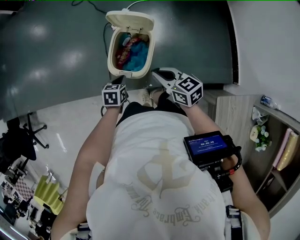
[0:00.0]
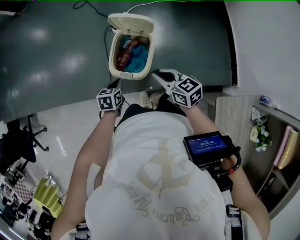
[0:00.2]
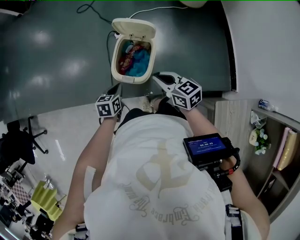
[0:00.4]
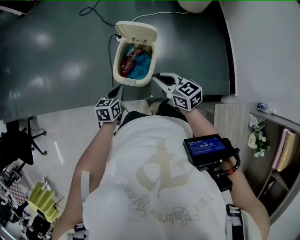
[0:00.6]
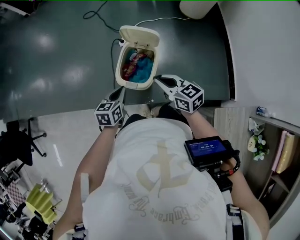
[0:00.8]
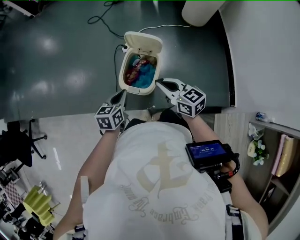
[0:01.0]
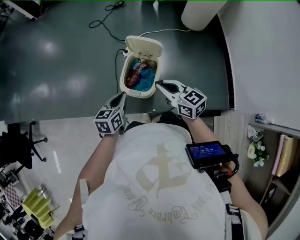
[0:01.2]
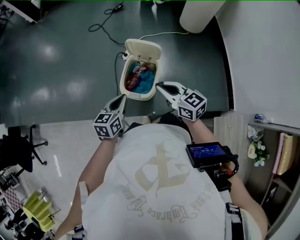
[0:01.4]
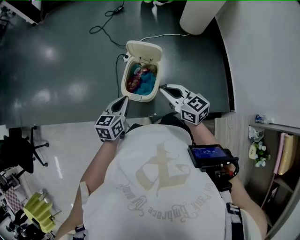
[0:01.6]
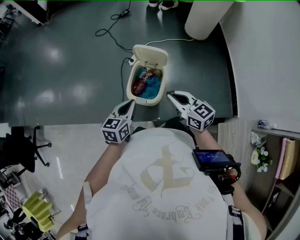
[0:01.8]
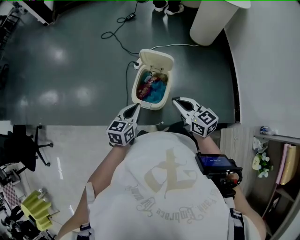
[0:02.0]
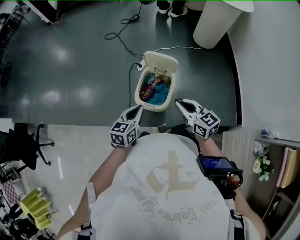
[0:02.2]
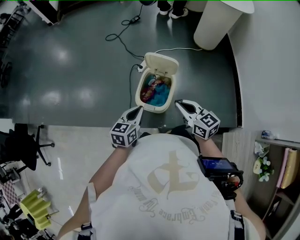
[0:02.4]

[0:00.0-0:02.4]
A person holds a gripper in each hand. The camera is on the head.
0:00.0 to 0:01.2: The right gripper goes some 10 cm upward. The left gripper heads upward, covering roughly 15 cm, and swivels about 30 degrees.
0:01.2 to 0:02.4: The grippers make only small movements.

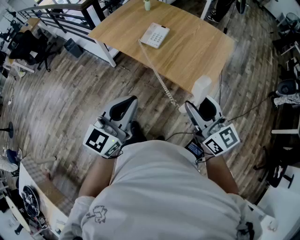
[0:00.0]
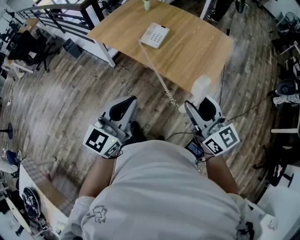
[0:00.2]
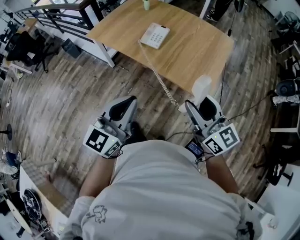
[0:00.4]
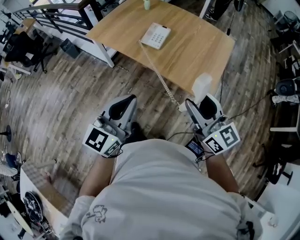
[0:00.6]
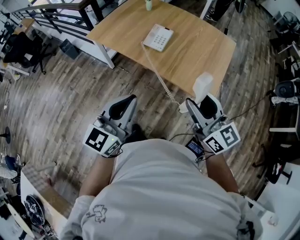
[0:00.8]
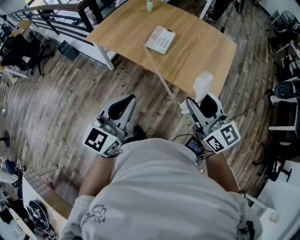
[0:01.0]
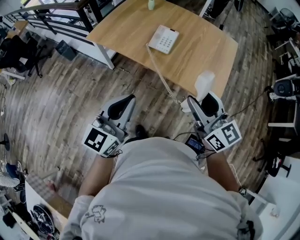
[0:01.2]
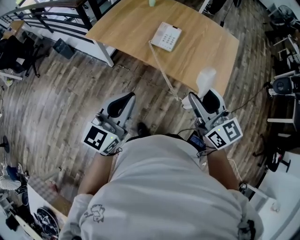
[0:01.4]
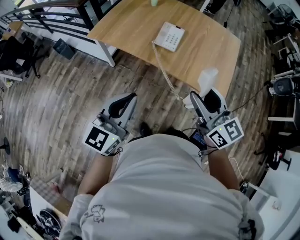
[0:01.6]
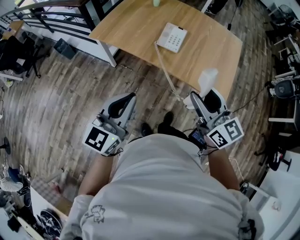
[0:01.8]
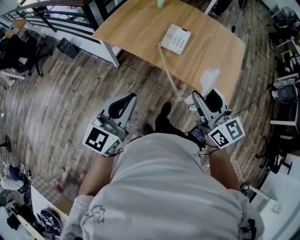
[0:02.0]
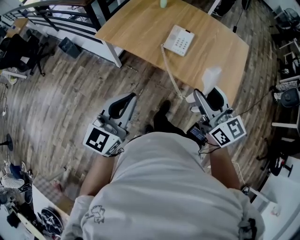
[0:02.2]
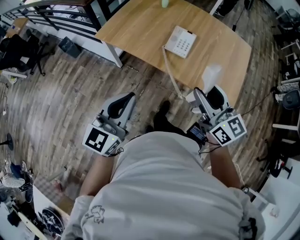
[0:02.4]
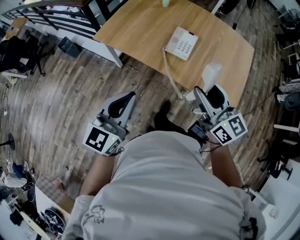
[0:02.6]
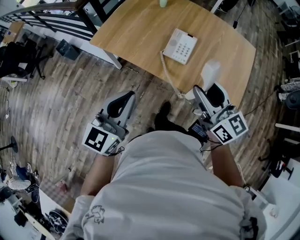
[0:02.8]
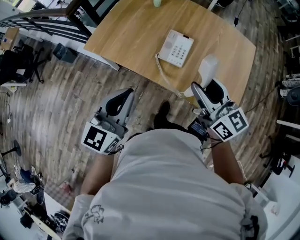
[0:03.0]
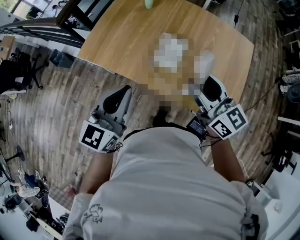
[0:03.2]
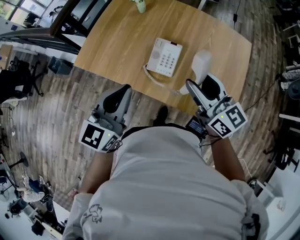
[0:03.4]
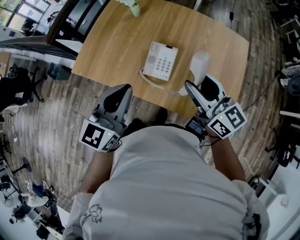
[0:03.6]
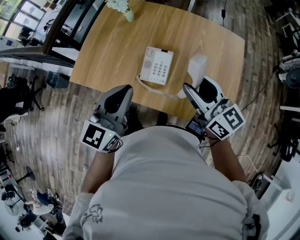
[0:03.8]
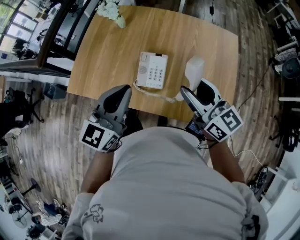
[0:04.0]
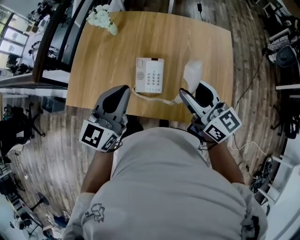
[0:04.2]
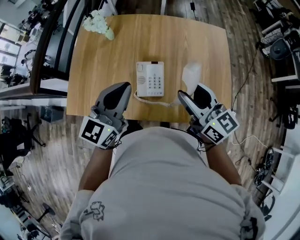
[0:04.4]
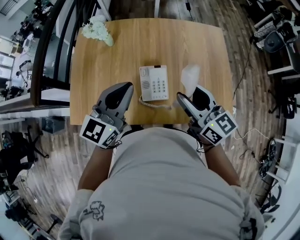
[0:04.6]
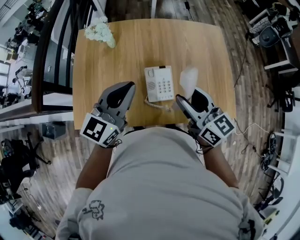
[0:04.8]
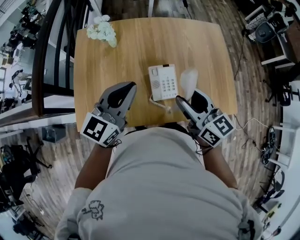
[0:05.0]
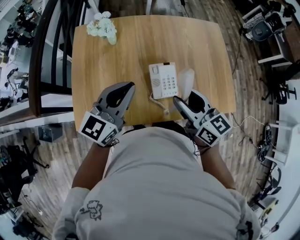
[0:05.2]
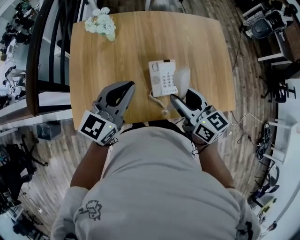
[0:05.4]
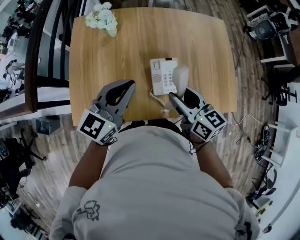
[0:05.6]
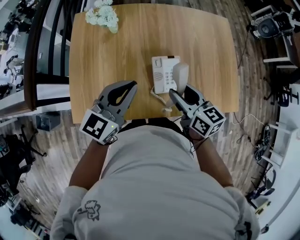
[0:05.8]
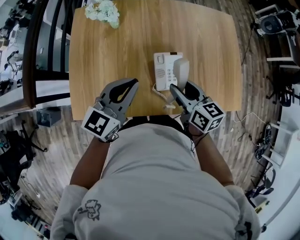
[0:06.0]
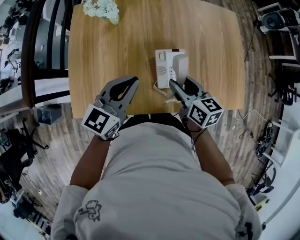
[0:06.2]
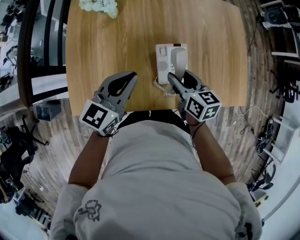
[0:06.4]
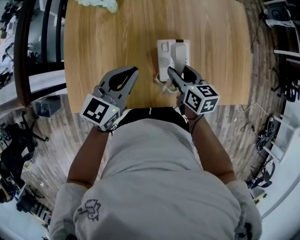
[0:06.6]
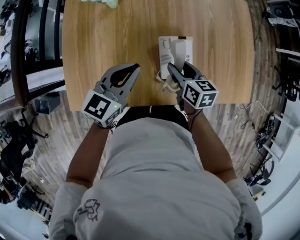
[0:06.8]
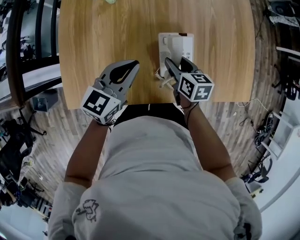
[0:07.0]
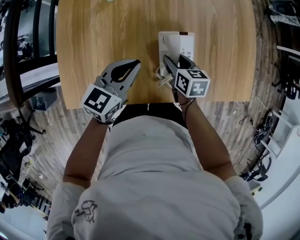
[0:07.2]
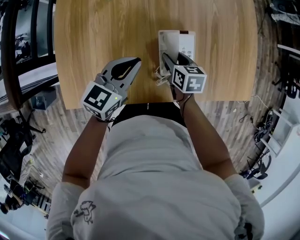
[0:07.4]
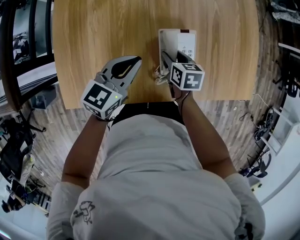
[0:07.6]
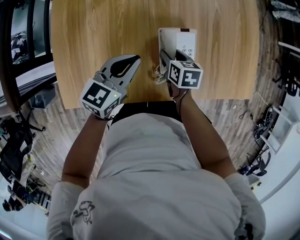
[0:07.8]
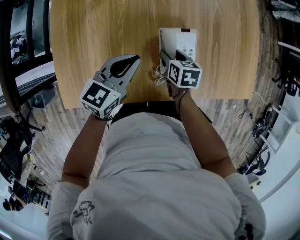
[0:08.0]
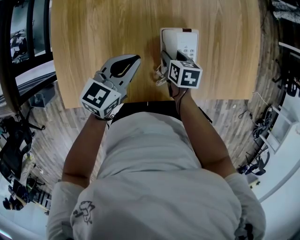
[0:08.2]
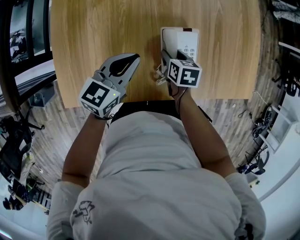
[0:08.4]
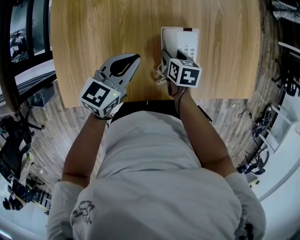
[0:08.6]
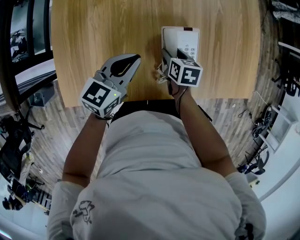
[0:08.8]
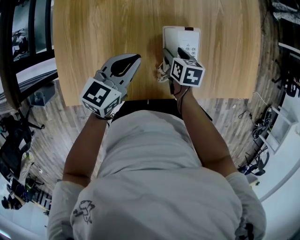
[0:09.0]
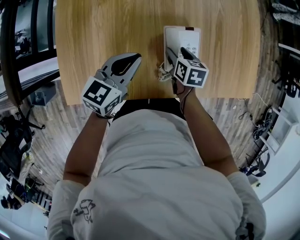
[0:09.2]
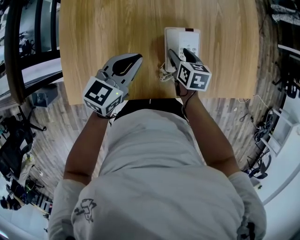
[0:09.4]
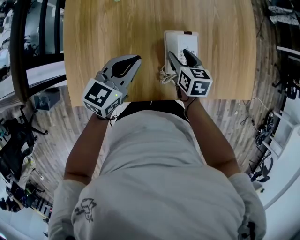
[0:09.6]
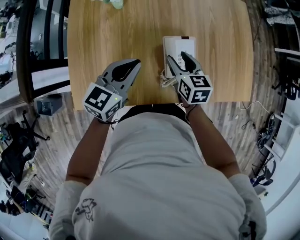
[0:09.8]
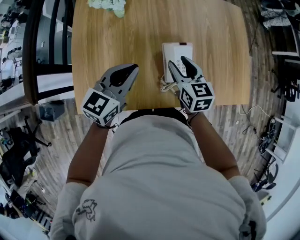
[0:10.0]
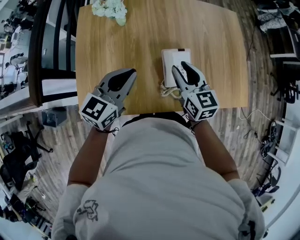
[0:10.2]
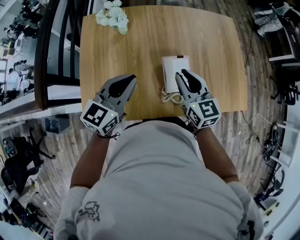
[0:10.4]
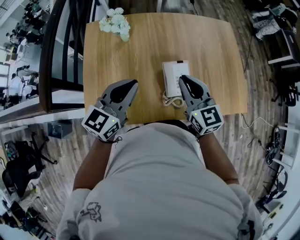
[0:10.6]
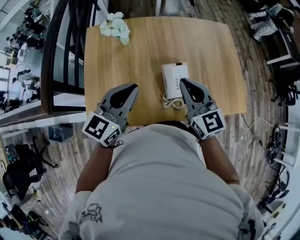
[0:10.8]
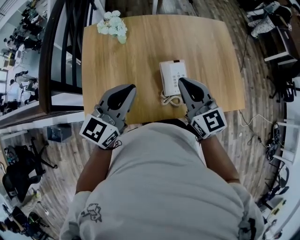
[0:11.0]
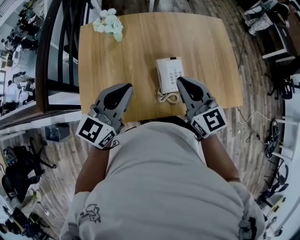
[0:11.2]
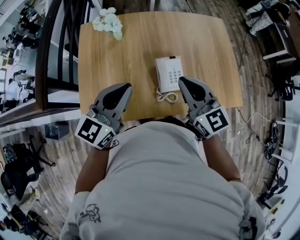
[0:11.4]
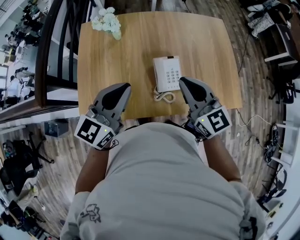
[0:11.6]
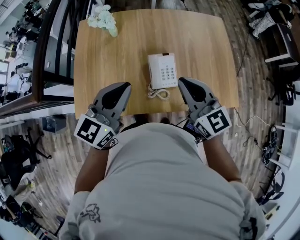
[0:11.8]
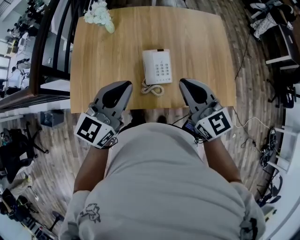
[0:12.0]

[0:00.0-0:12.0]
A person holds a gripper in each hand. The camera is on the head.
0:00.0 to 0:01.6: Both grippers move to the left and forward, approximately 20 cm.
0:01.6 to 0:03.0: The grippers both shift forward by approximately 20 cm.
0:03.0 to 0:04.4: The right gripper is displaced forward by roughly 15 cm. The left gripper travels forward by about 25 cm, and swivels about 20 degrees.
0:04.4 to 0:06.0: The grippers both shift to the left and downward by about 15 cm. The right gripper changes its angle by roughly 30 degrees.
0:06.0 to 0:07.6: The right gripper is displaced downward by approximately 20 cm, and swivels roughly 30 degrees. Meanwhile the left gripper heads downward, covering approximately 15 cm.
0:07.6 to 0:09.0: The grippers stay close to where they were, moving slightly.
0:09.0 to 0:10.4: The left gripper goes about 15 cm upward. Meanwhile the right gripper travels upward by some 25 cm, points its fingers approximately 40 degrees further upward, and closes its fingers.
0:10.4 to 0:12.0: The left gripper shifts roughly 15 cm to the right, backward and upward. Meanwhile the right gripper goes about 20 cm to the right, upward and backward.

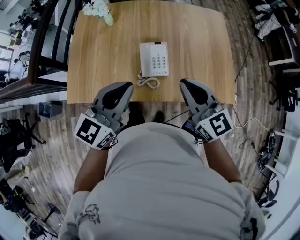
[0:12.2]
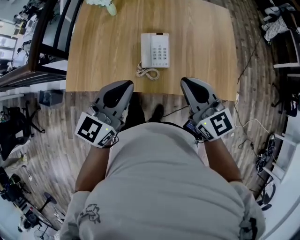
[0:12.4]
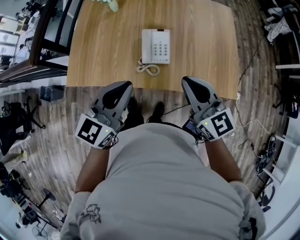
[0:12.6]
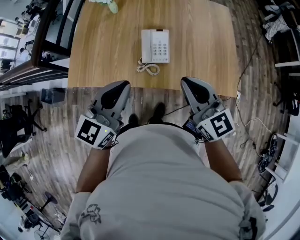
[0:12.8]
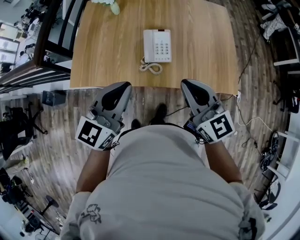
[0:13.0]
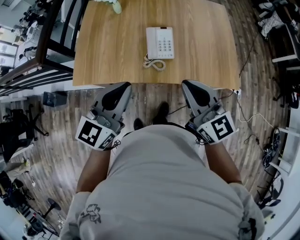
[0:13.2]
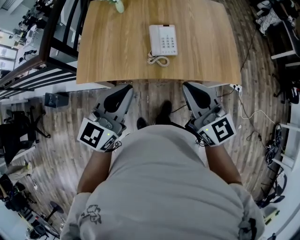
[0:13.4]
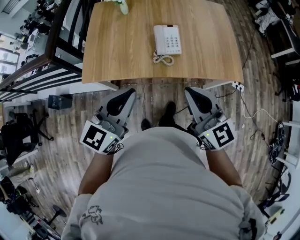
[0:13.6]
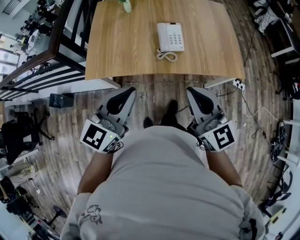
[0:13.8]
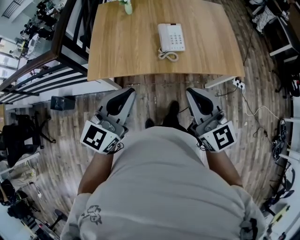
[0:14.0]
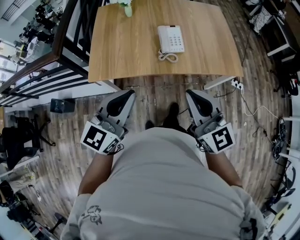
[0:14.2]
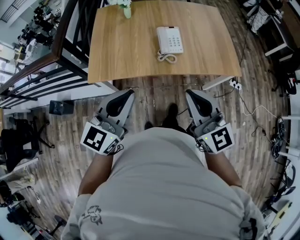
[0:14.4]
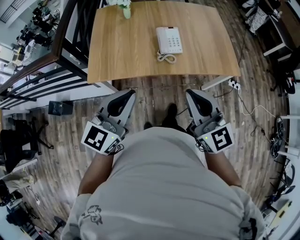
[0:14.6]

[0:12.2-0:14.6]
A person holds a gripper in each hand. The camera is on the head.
0:12.2 to 0:13.4: Both grippers move backward, some 15 cm.
0:13.4 to 0:14.6: The grippers both shift backward and to the left by some 15 cm.

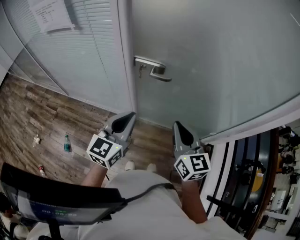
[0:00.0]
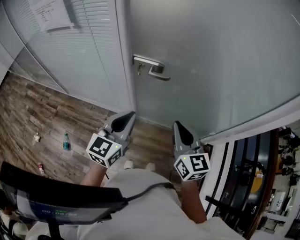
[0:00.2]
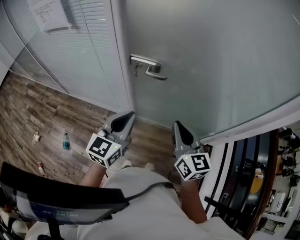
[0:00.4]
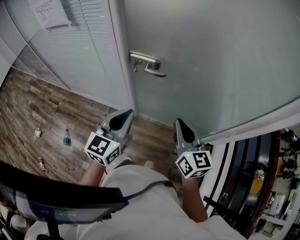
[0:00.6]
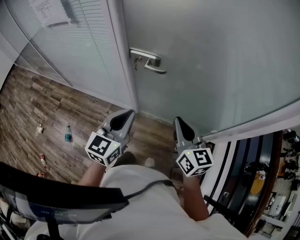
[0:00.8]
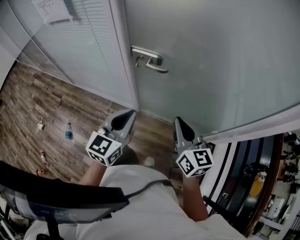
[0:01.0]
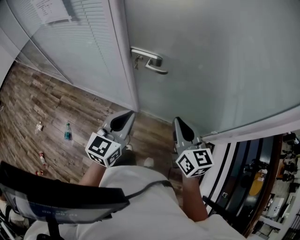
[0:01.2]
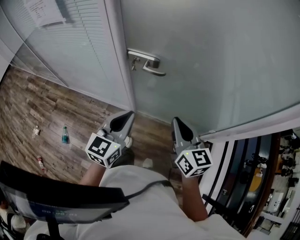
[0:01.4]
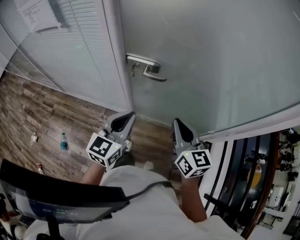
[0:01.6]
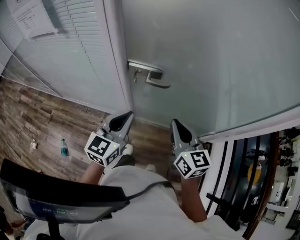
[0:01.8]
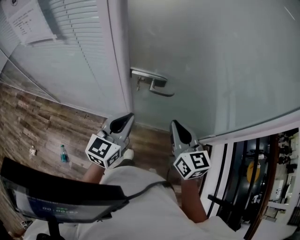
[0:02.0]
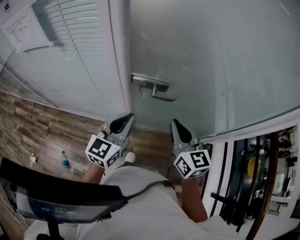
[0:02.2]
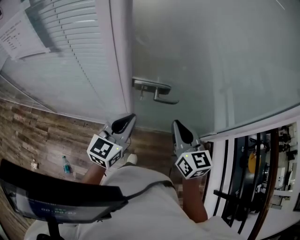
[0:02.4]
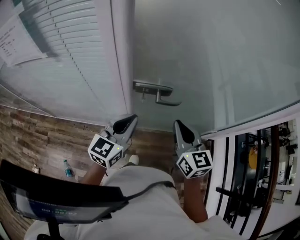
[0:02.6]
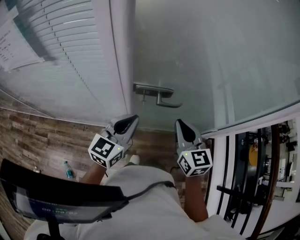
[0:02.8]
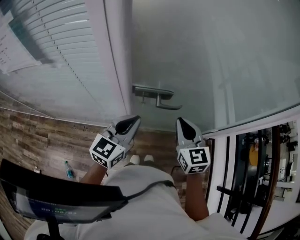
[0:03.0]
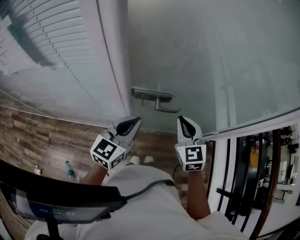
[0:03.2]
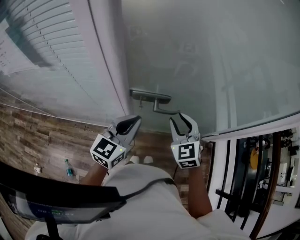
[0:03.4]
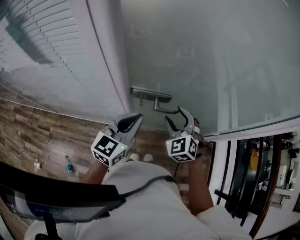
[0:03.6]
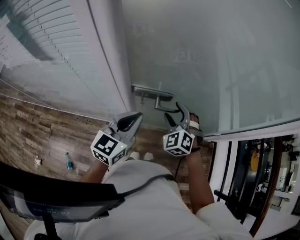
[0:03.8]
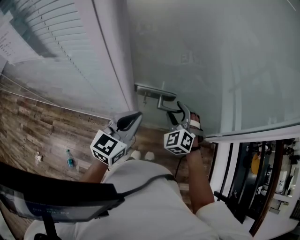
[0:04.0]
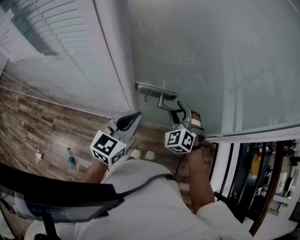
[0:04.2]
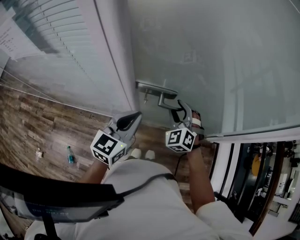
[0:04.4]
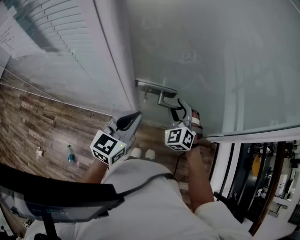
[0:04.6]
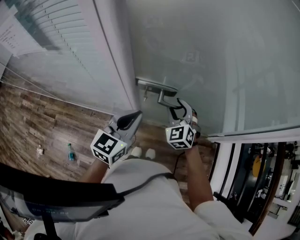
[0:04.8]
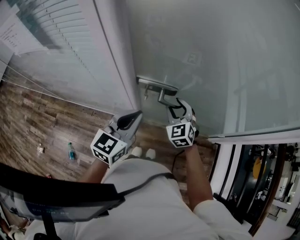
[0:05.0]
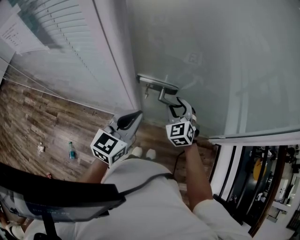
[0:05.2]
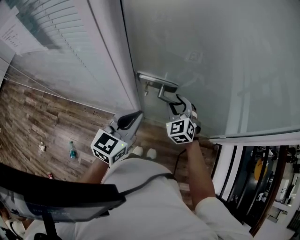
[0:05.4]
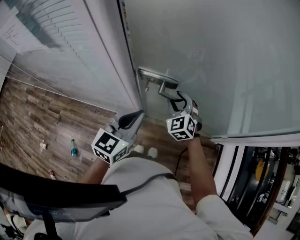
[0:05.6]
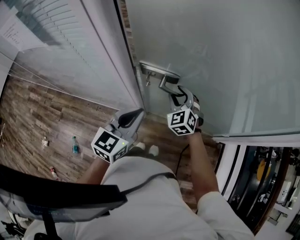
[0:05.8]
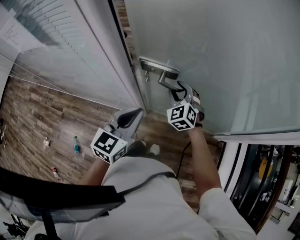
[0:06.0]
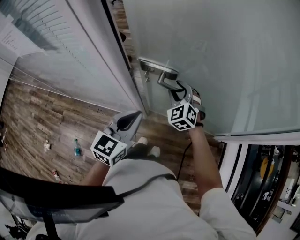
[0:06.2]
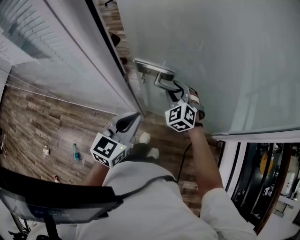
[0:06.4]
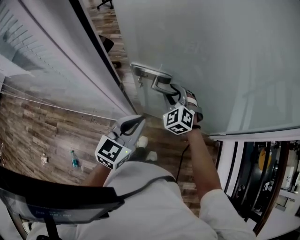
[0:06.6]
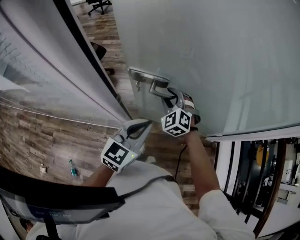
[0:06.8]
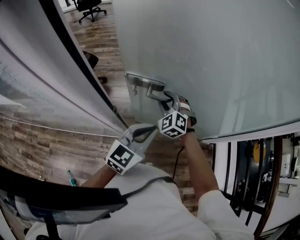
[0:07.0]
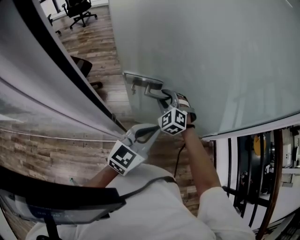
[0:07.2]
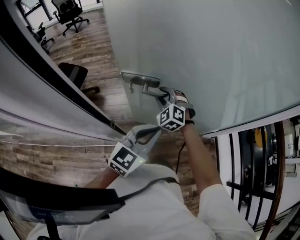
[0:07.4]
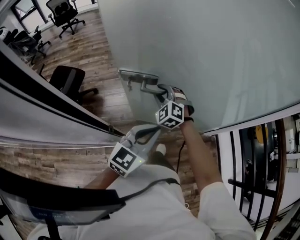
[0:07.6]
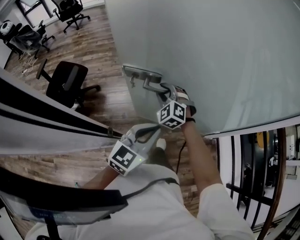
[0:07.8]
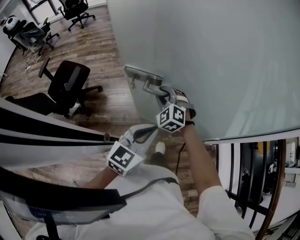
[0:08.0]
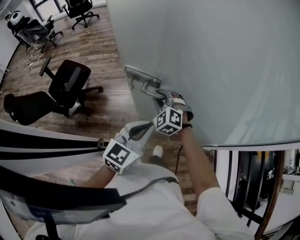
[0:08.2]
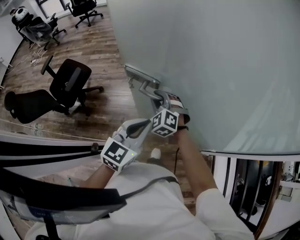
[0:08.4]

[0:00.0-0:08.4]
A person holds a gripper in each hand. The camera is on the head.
0:00.0 to 0:01.4: The right gripper changes place by some 5 cm, while the left gripper shifts by roughly 5 cm.
0:01.4 to 0:02.8: The right gripper travels to the left and forward by about 20 cm. The left gripper heads forward and to the left, covering about 20 cm.
0:02.8 to 0:04.2: The right gripper moves forward and downward, about 15 cm, rotates around the line of its fingers by approximately 50 degrees, counterclockwise from behind, and opens its fingers.
0:05.6 to 0:07.0: The left gripper moves to the right, roughly 5 cm, and changes its angle by roughly 20 degrees.
0:07.0 to 0:08.4: The left gripper moves roughly 10 cm backward and comes back, while the right gripper travels backward and back again, about 10 cm each way.
